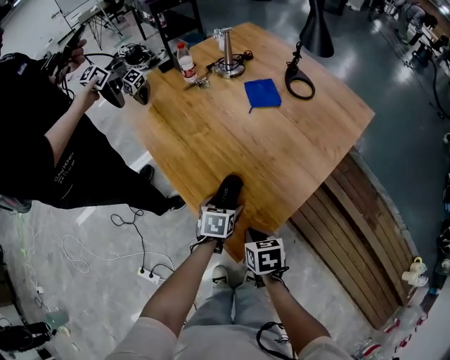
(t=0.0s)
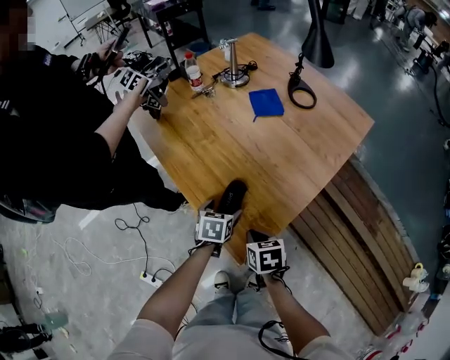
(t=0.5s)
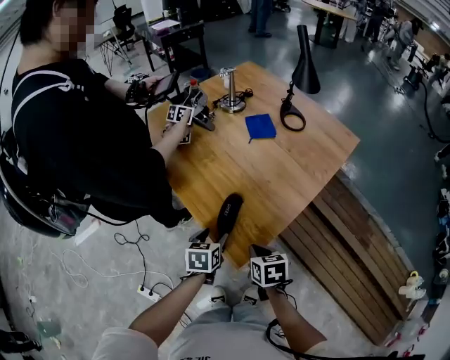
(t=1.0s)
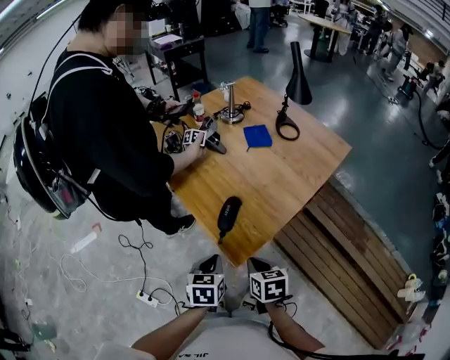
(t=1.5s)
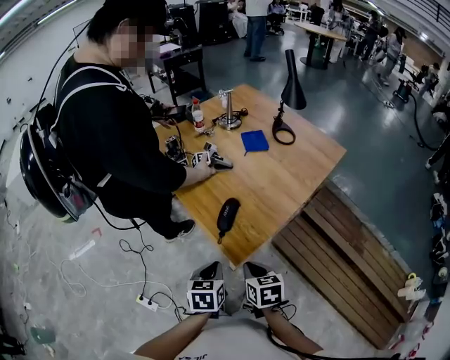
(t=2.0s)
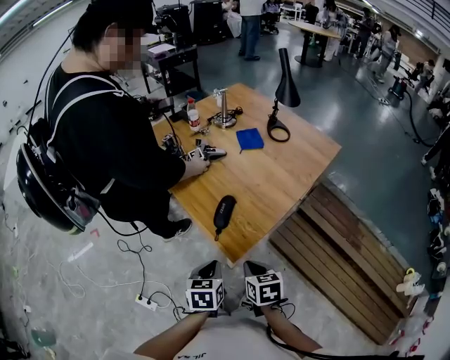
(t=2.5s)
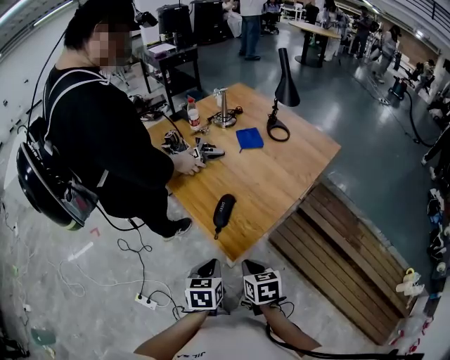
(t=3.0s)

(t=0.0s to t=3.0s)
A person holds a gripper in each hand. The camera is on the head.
t=0.0s - t=1.5s: The left gripper moves backward and upward, about 25 cm, and closes. The right gripper is displaced upward and backward by about 15 cm.
t=1.5s - t=3.0s: The left gripper changes place by approximately 5 cm.

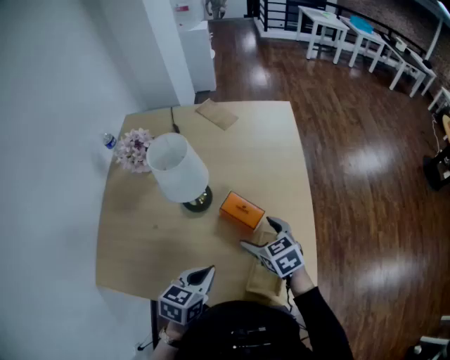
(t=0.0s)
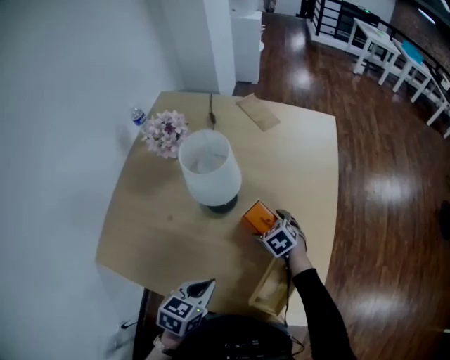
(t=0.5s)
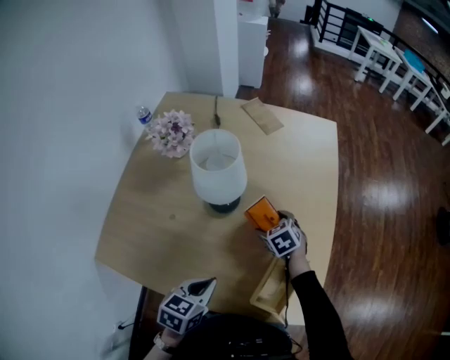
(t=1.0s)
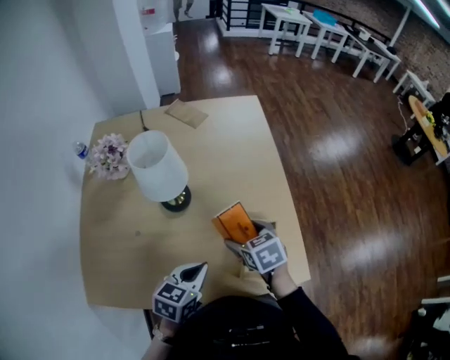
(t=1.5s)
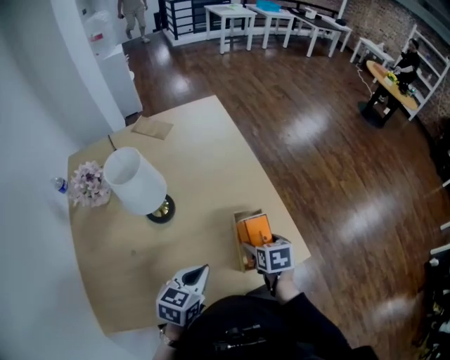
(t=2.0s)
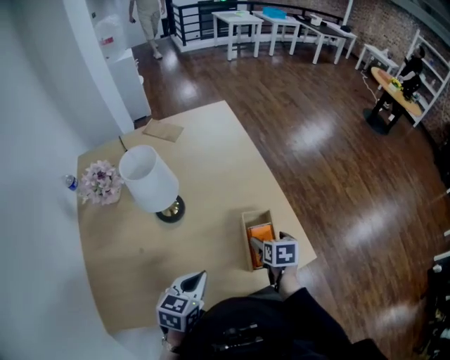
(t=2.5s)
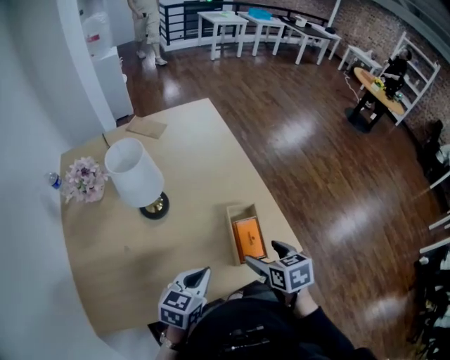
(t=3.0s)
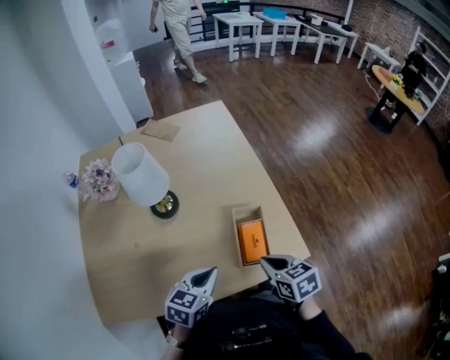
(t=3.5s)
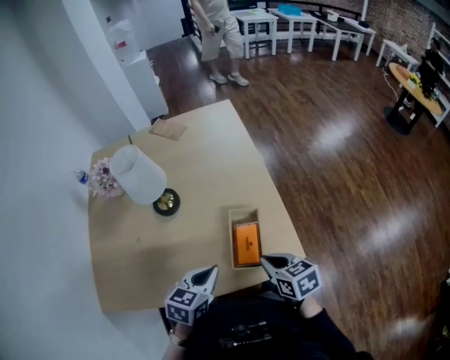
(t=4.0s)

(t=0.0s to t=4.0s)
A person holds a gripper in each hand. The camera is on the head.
t=0.0s - t=2.0s: The left gripper turns by about 20 degrees. The right gripper swings up and down, about 10 cm each way, with 2 reversals, and turns by about 50 degrees.
t=2.0s - t=4.0s: The right gripper moves backward and upward, approximately 10 cm, rotates approximately 30 degrees, and closes. Meanwhile the left gripper goes about 5 cm to the right.

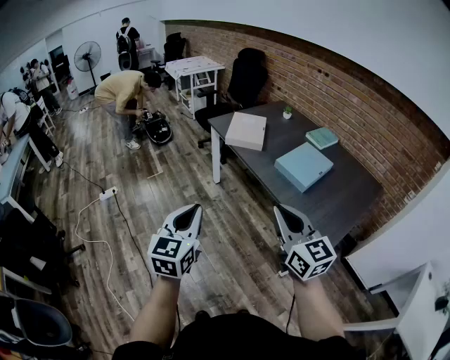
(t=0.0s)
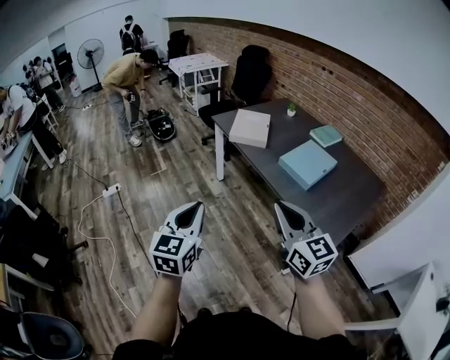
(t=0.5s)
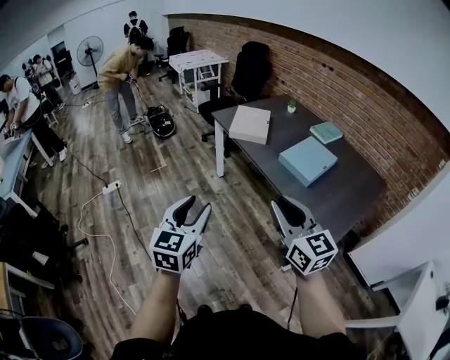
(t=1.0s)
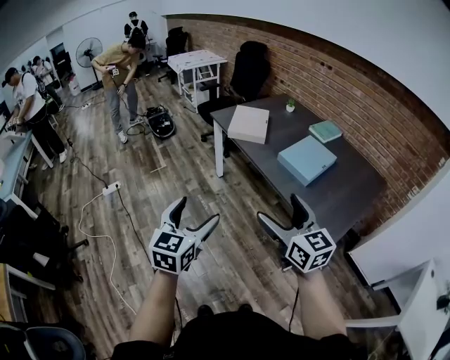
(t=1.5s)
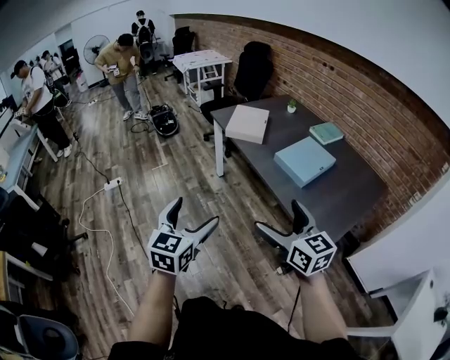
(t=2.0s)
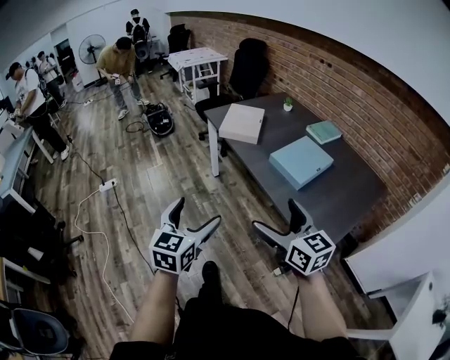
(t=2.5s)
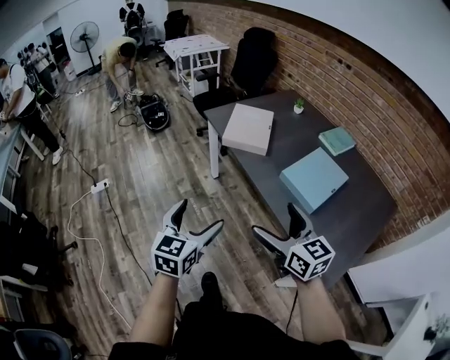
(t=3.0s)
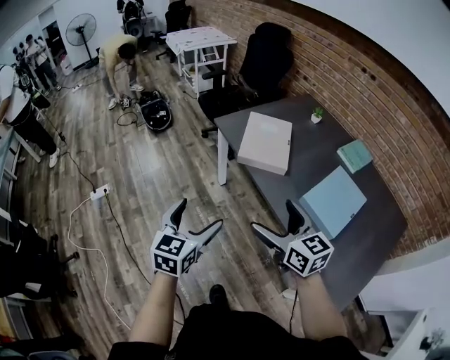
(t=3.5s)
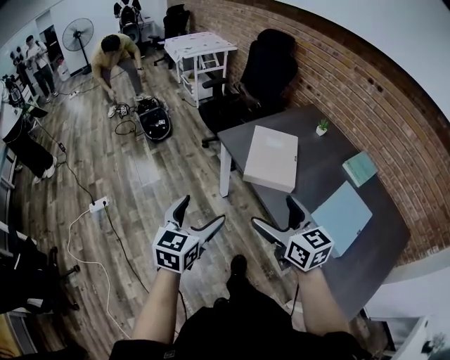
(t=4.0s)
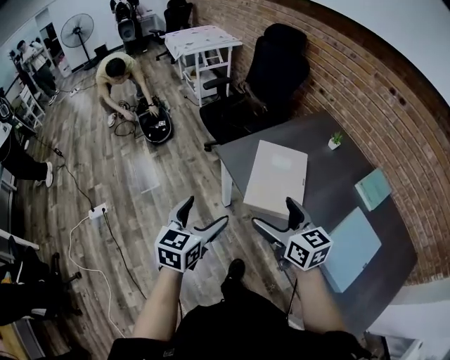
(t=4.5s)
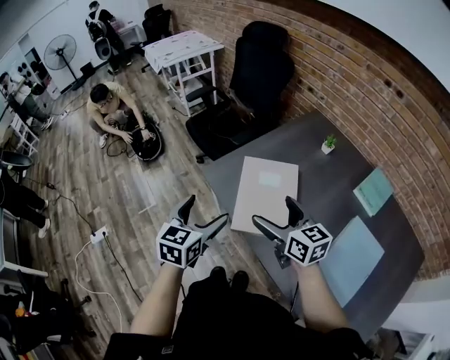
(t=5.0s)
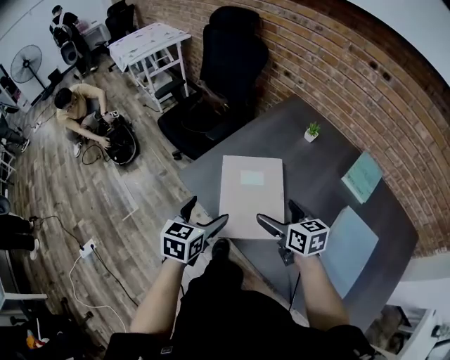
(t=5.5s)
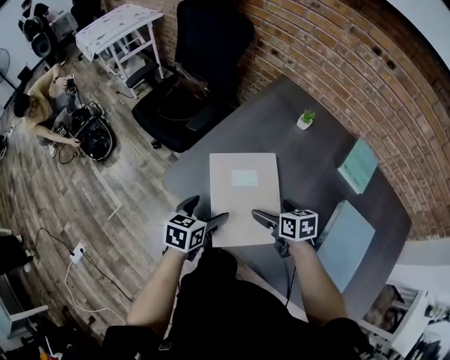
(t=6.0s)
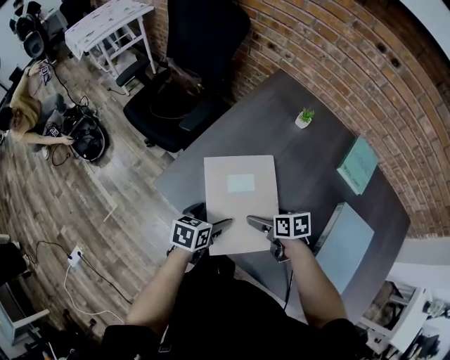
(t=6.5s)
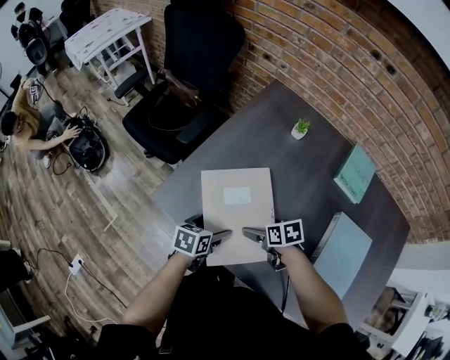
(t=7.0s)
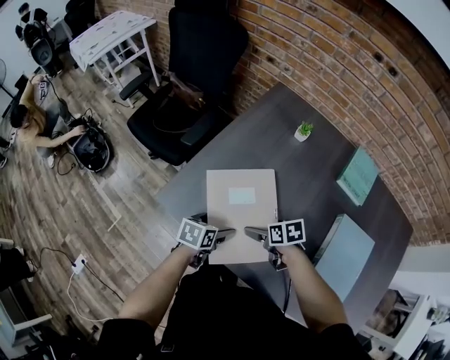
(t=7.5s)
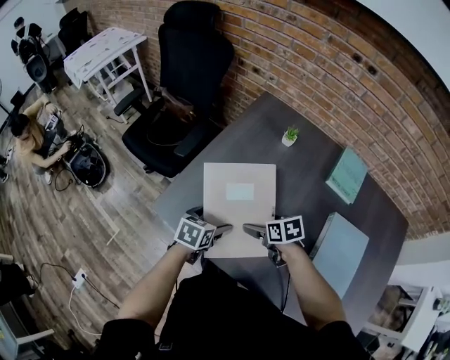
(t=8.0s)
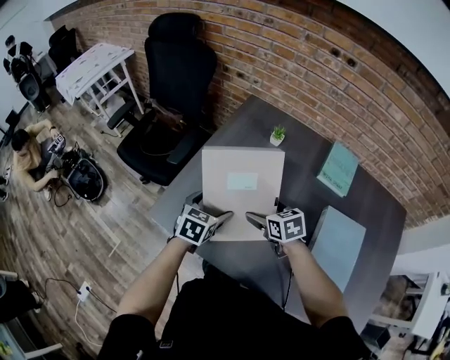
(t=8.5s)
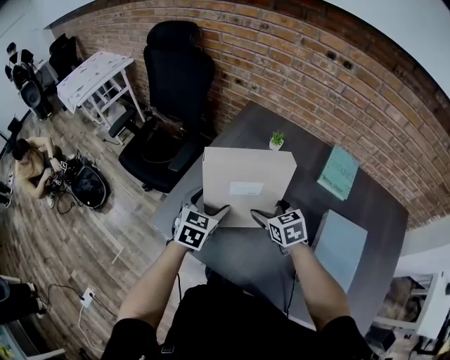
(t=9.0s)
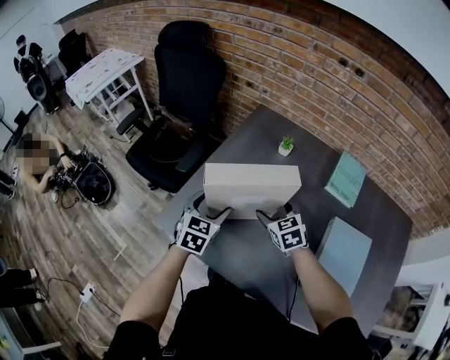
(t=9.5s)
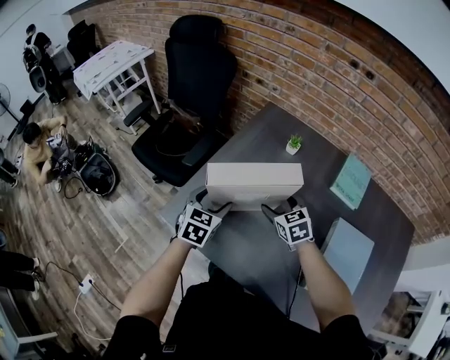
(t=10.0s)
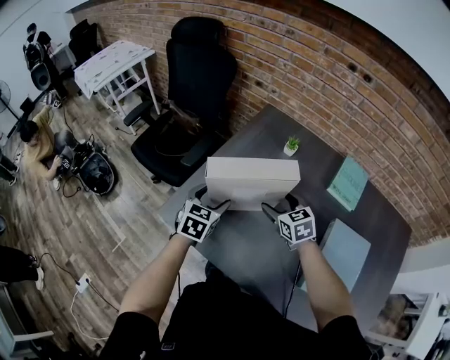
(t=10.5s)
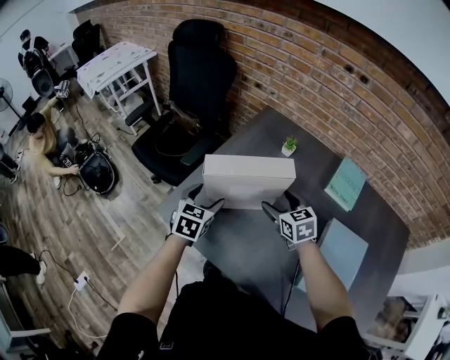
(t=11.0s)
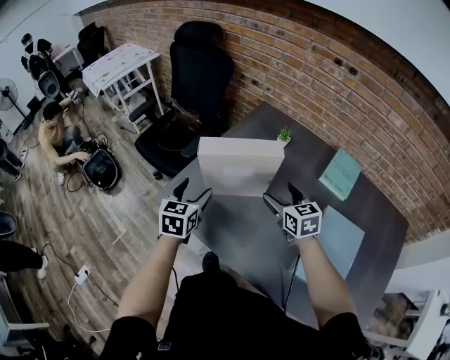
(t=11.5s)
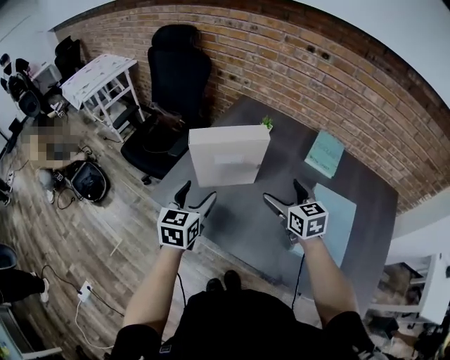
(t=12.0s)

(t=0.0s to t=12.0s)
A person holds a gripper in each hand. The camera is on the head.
t=0.0s - t=2.0s: The right gripper moves about 5 cm, and opens up. Meanwhile the left gripper goes approximately 5 cm to the right, and opens its fingers.
t=2.0s - t=4.0s: The pair of grippers is taken forward, about 40 cm.
t=4.0s - t=6.0s: The right gripper is displaced forward, downward and to the right by roughly 40 cm, and tips its fingers downward by approximately 30 degrees, while the left gripper shifts some 40 cm forward and downward, and turns by some 40 degrees.
t=6.0s - t=8.0s: The left gripper shifts by approximately 5 cm.
t=8.0s - t=10.0s: The right gripper is displaced forward and upward by roughly 10 cm, and turns by about 40 degrees. The left gripper is displaced upward and forward by about 10 cm, and turns by some 30 degrees.
t=10.0s - t=12.0s: The right gripper heads backward, upward and to the right, covering approximately 15 cm. Meanwhile the left gripper moves backward and upward, about 15 cm.

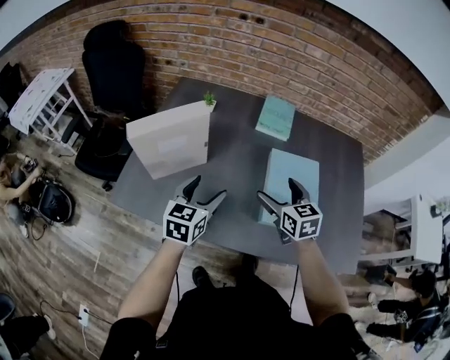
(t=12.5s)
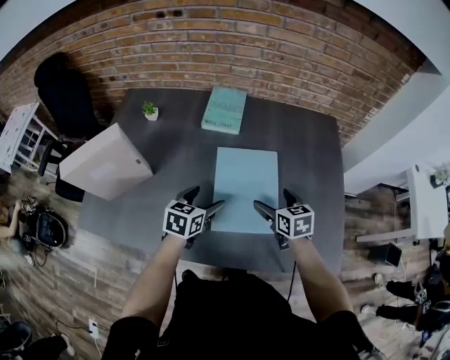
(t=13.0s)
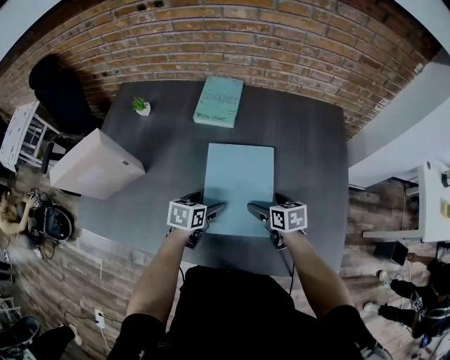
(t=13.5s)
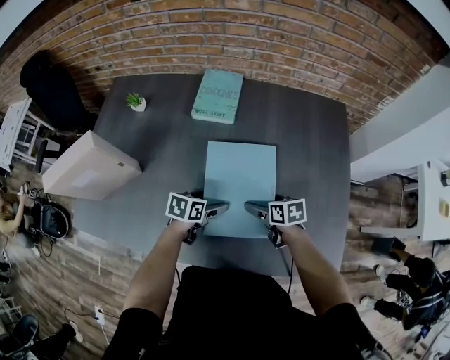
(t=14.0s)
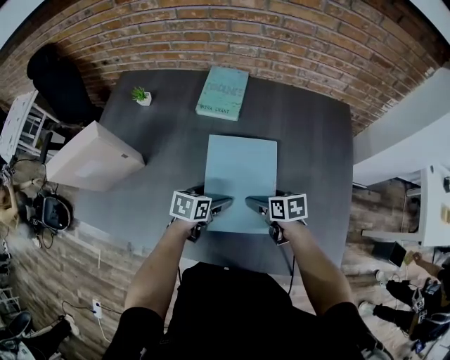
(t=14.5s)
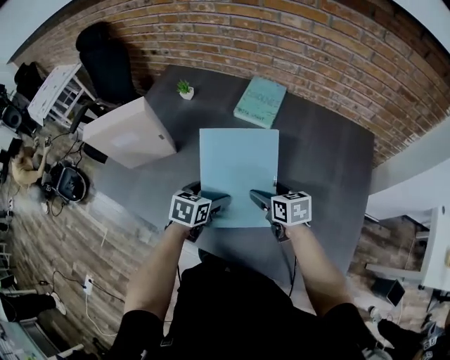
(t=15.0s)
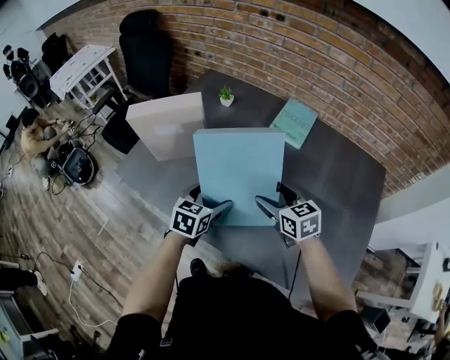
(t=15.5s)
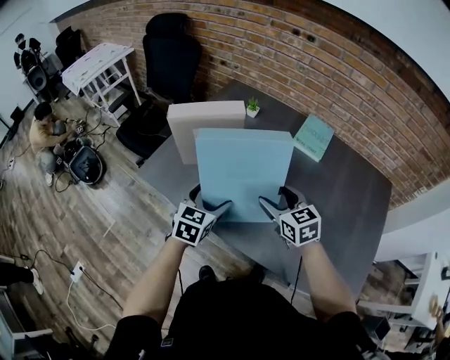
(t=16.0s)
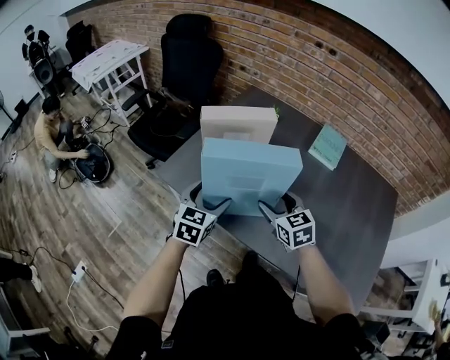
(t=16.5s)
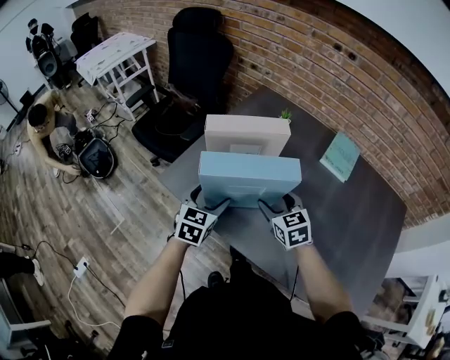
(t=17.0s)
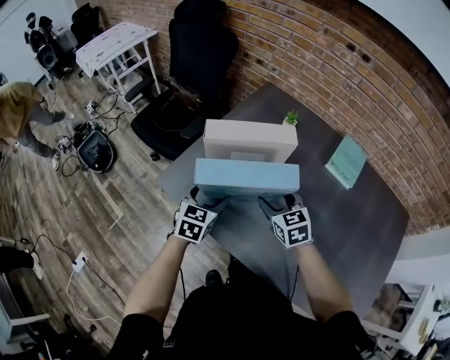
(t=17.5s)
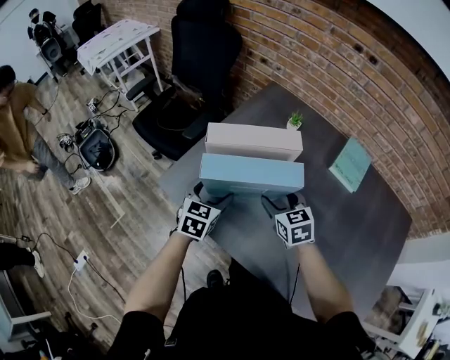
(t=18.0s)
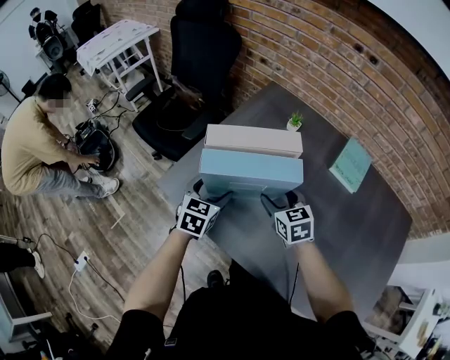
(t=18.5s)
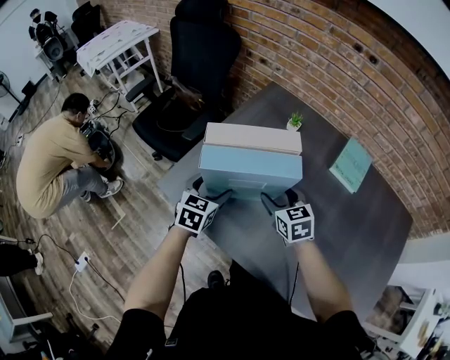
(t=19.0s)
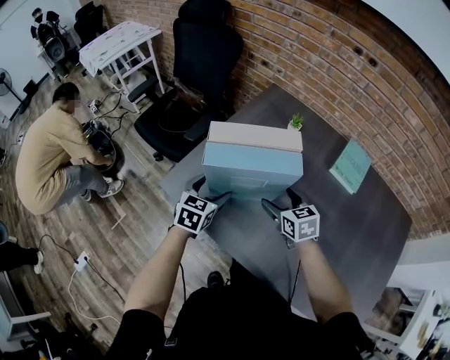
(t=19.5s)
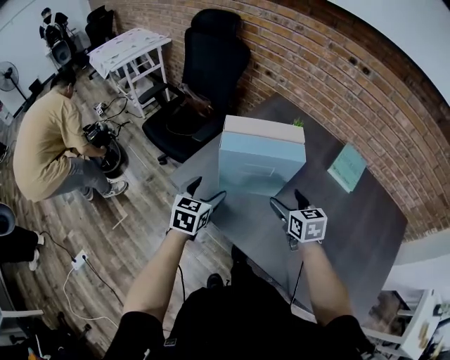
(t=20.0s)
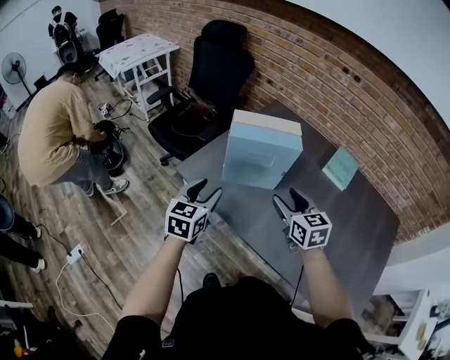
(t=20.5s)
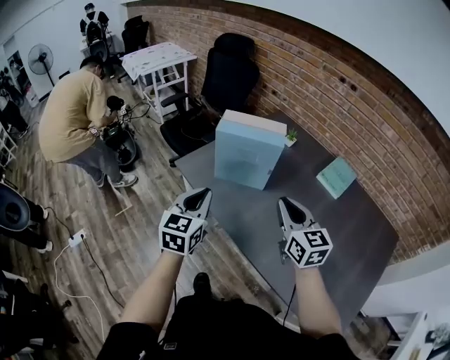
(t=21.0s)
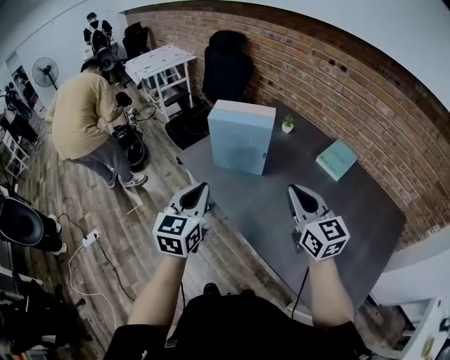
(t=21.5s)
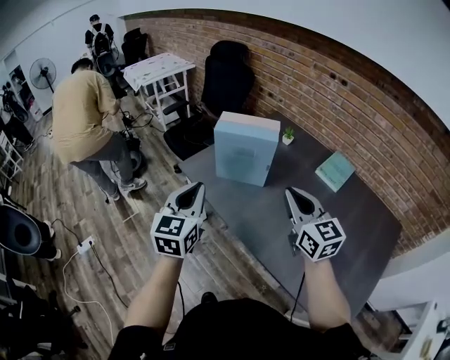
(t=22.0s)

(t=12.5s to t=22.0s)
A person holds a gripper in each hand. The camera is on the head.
t=12.5s - t=14.5s: Both grippers travel together to the right and downward, some 30 cm. The right gripper changes its angle by roughly 40 degrees; the left gripper turns by about 40 degrees.
t=14.5s - t=16.5s: The left gripper changes place by about 40 cm, and changes its angle by approximately 50 degrees. The right gripper moves some 40 cm, and twists some 50 degrees counterclockwise, seen from behind.
t=16.5s - t=18.0s: The grippers both shift forward and downward by about 15 cm.
t=18.0s - t=20.0s: The left gripper goes some 5 cm to the left. The right gripper shifts by approximately 5 cm.
t=20.0s - t=22.0s: The right gripper moves upward and backward, roughly 25 cm, changes its angle by roughly 30 degrees, and closes. Meanwhile the left gripper travels backward and upward by about 30 cm, rotates roughly 30 degrees, and closes its fingers.
